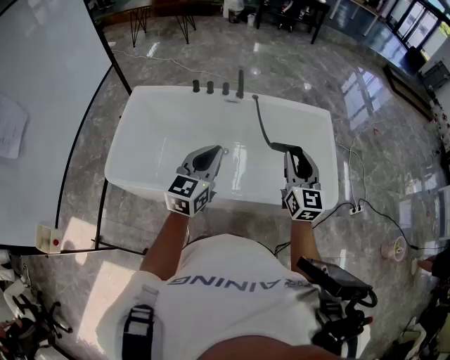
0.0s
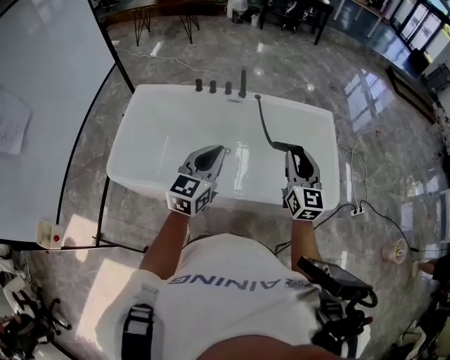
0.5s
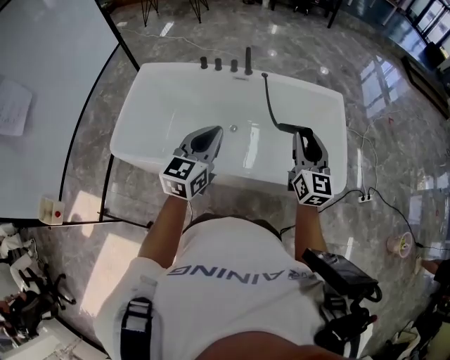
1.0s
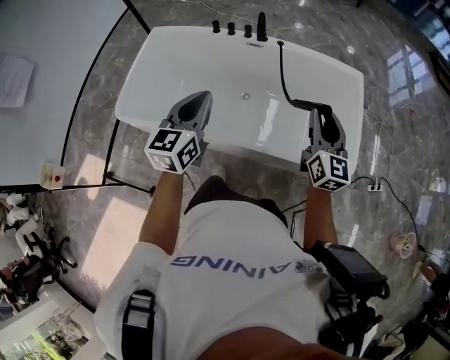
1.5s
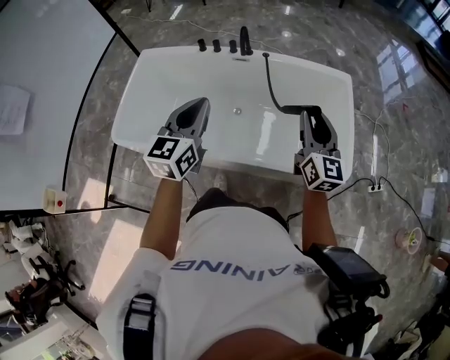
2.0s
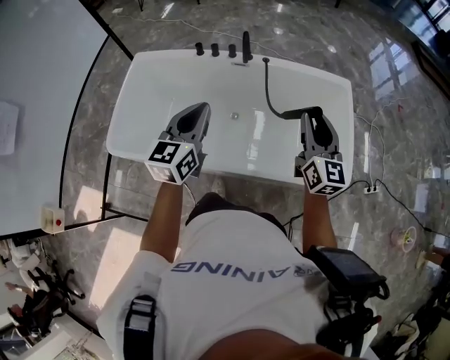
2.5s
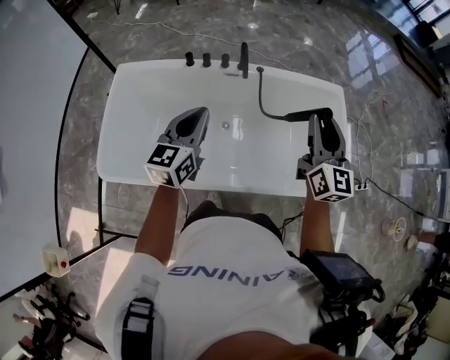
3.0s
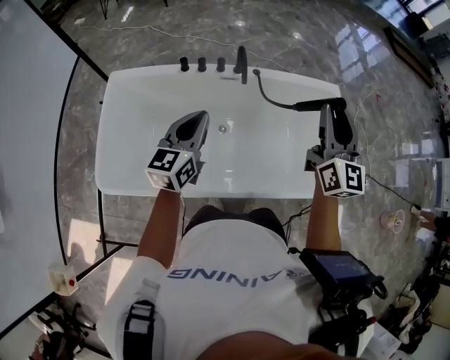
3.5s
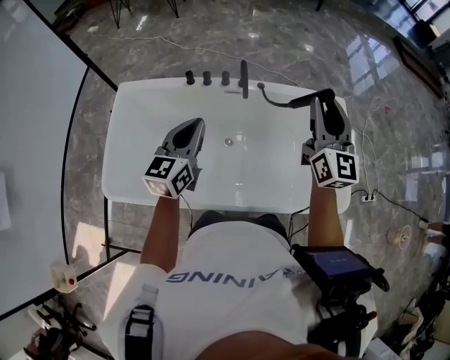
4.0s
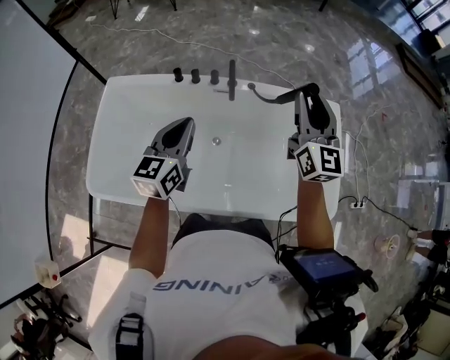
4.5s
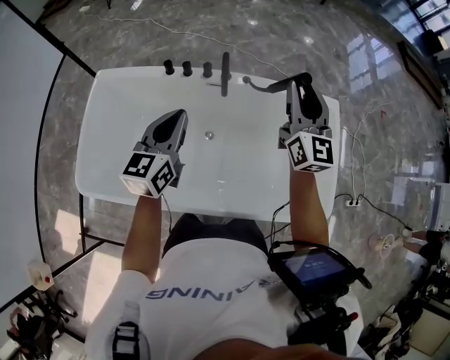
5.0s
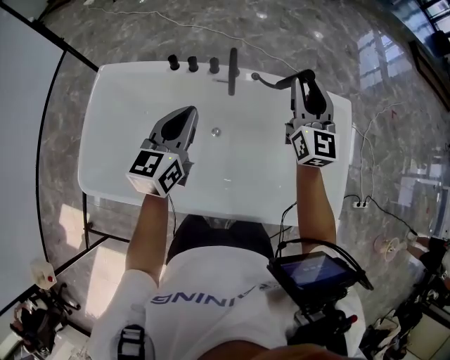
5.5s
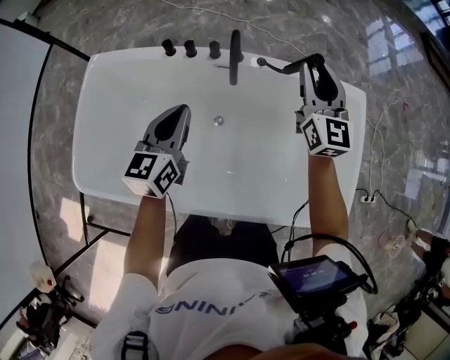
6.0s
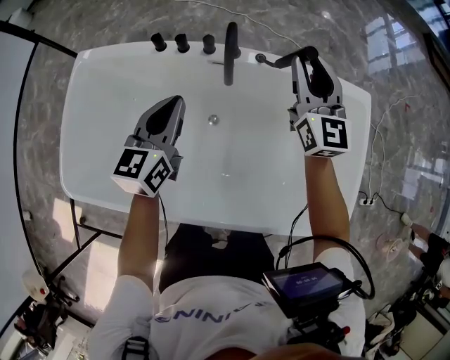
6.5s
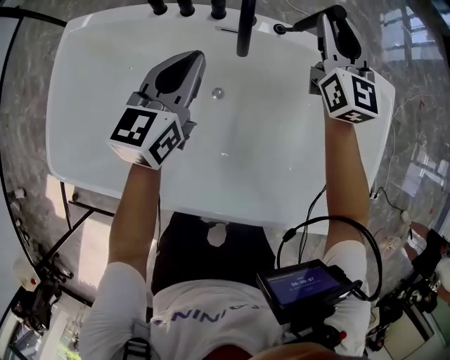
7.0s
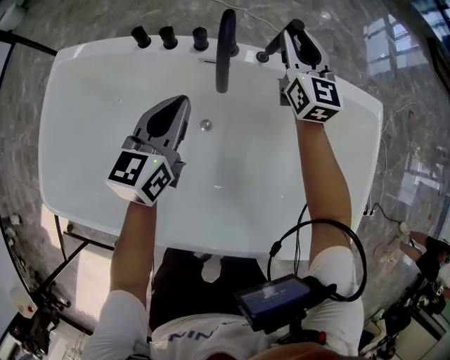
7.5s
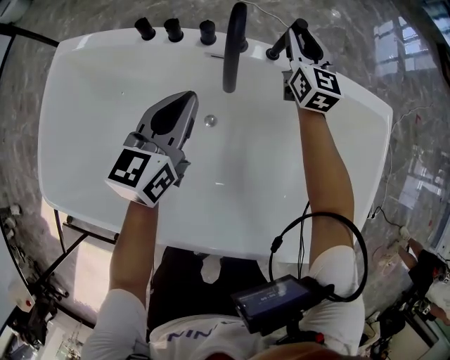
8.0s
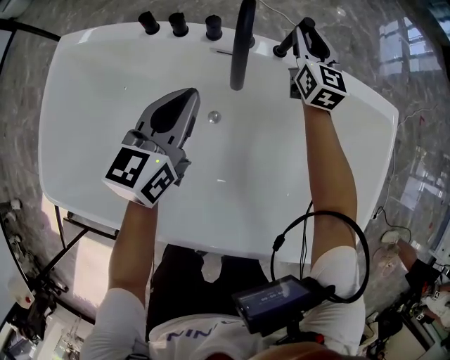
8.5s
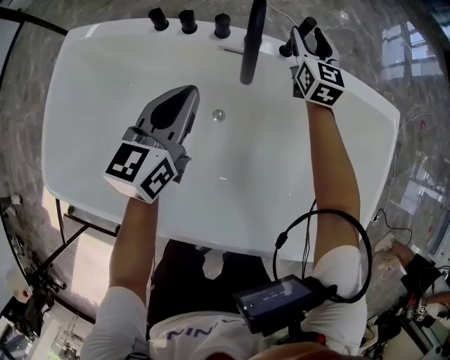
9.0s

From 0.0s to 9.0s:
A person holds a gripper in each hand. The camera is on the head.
From 0.0s to 2.0s: The right gripper goes approximately 10 cm to the right. Meanwhile the left gripper goes roughly 5 cm to the right.
From 2.0s to 4.5s: The grippers both shift forward and to the left by approximately 30 cm.
From 4.5s to 7.0s: The two grippers go roughly 35 cm downward and forward.
From 7.0s to 9.0s: The right gripper heads downward and forward, covering about 20 cm, and opens up.

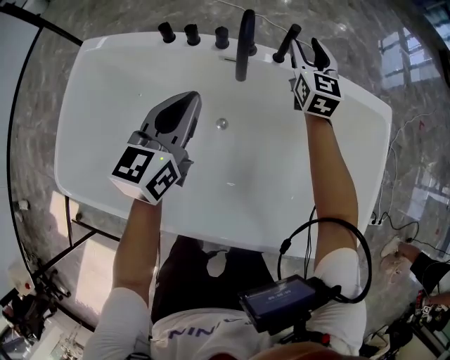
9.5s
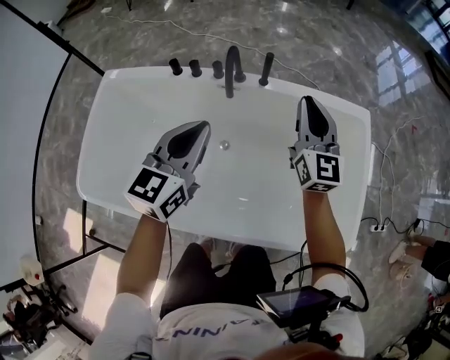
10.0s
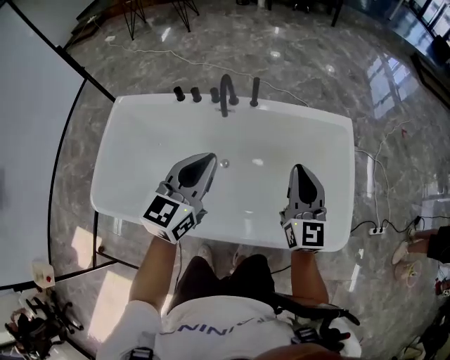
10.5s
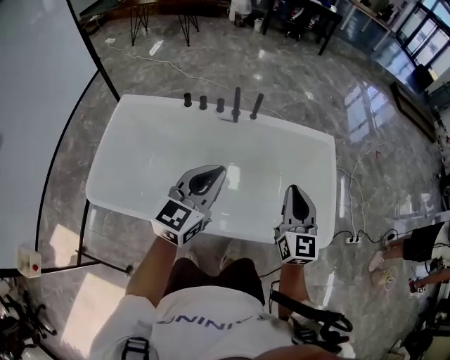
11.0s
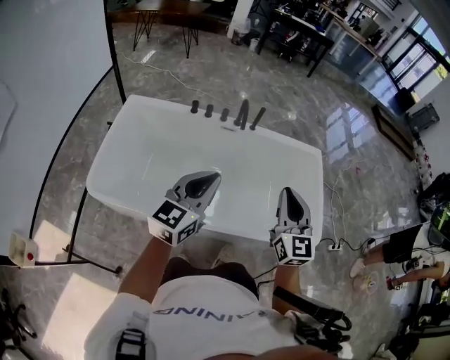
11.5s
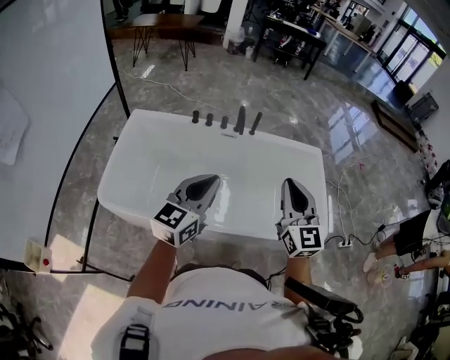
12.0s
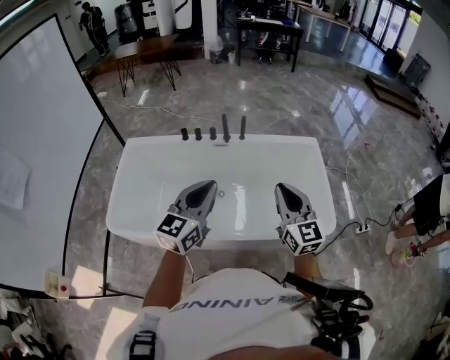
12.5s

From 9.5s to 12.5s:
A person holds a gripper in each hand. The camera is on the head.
From 9.5s to 11.0s: The grippers both shift backward and upward by some 50 cm. The right gripper closes.
From 11.0s to 12.5s: The two grippers go about 15 cm backward and upward.

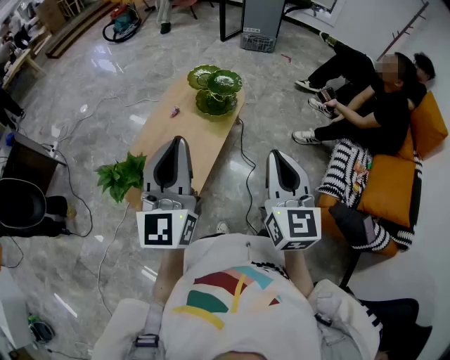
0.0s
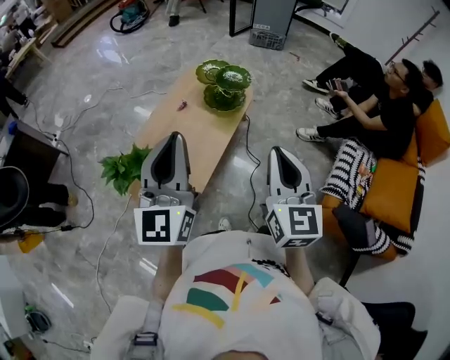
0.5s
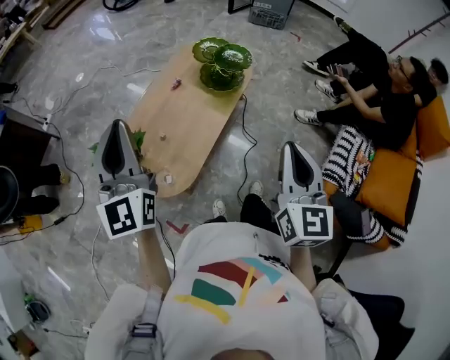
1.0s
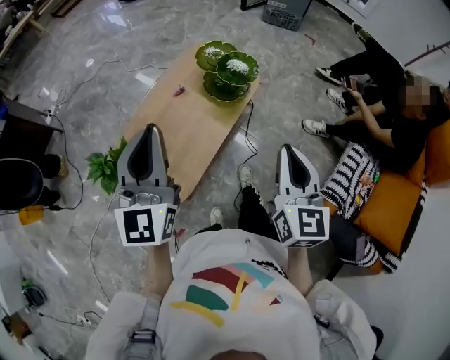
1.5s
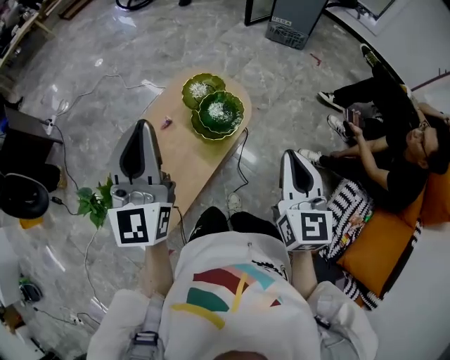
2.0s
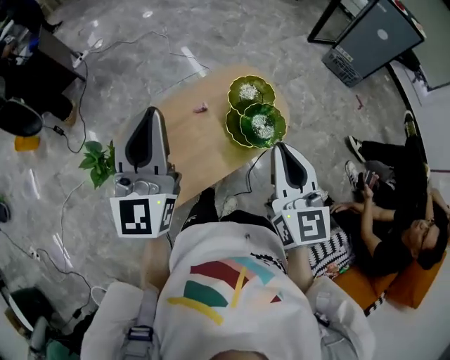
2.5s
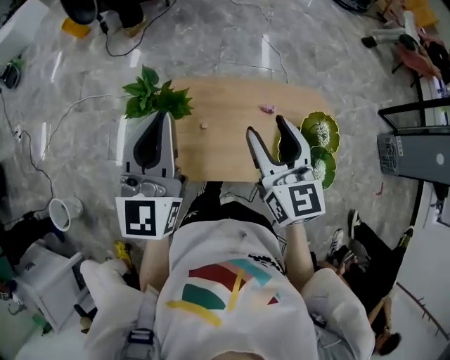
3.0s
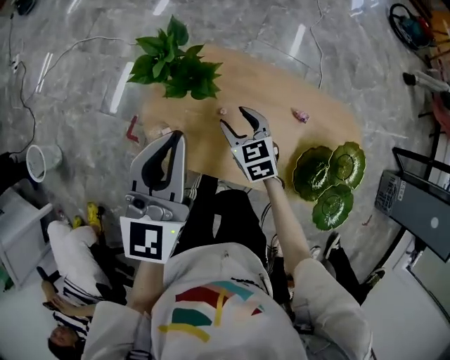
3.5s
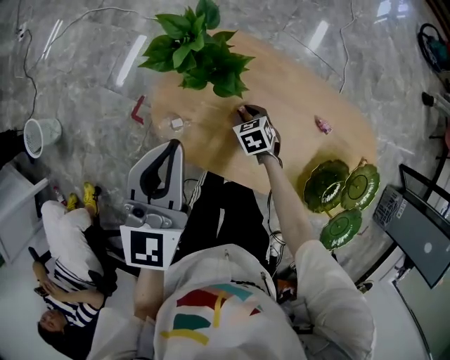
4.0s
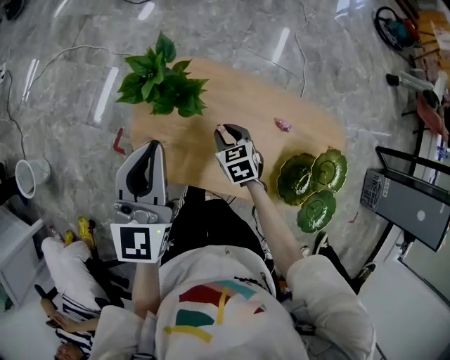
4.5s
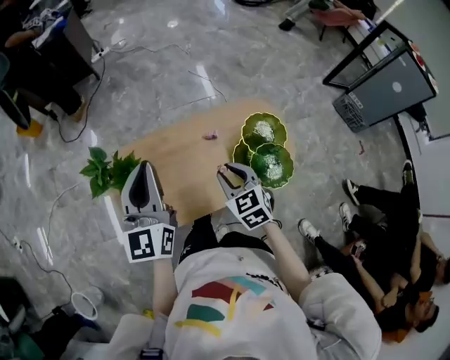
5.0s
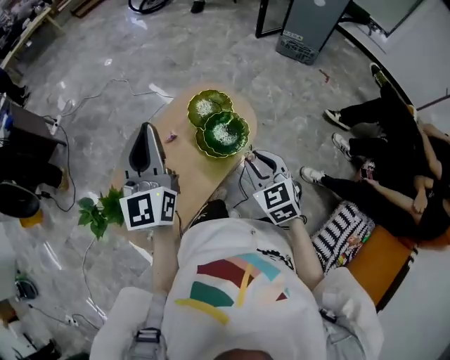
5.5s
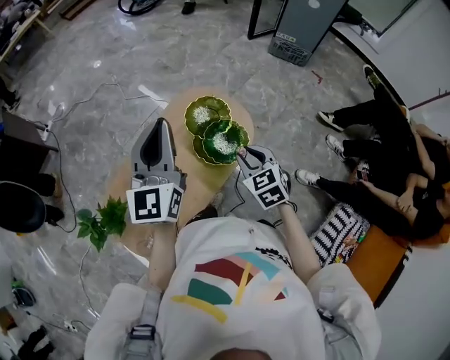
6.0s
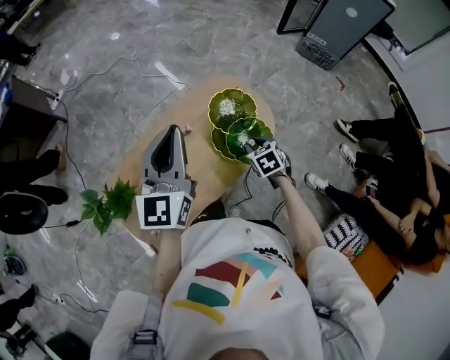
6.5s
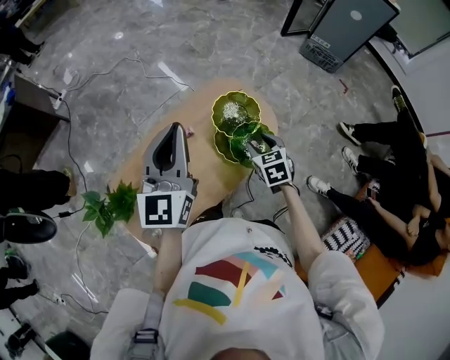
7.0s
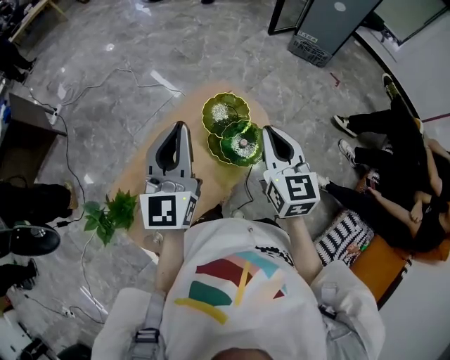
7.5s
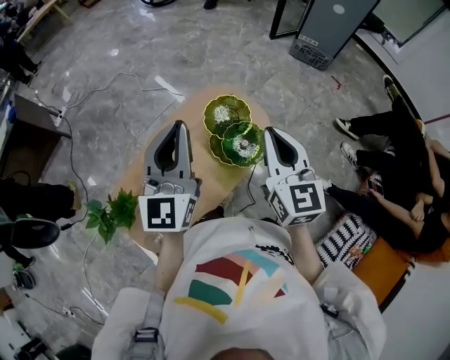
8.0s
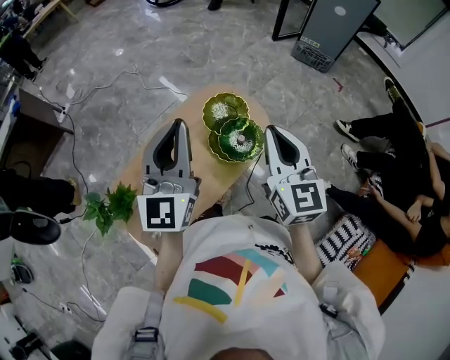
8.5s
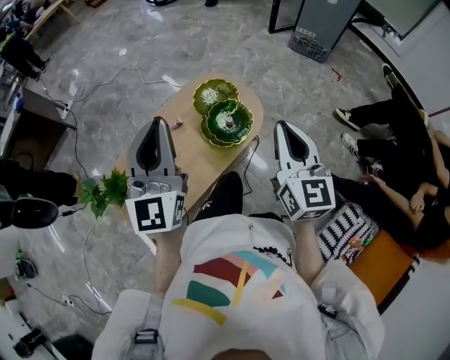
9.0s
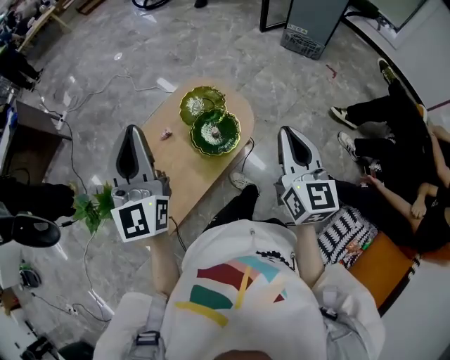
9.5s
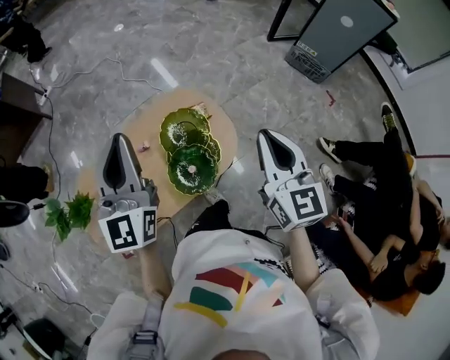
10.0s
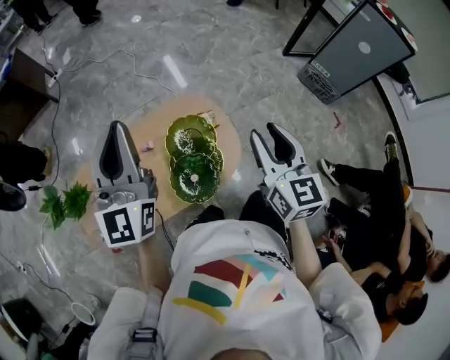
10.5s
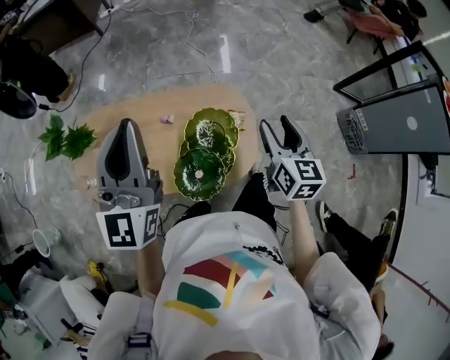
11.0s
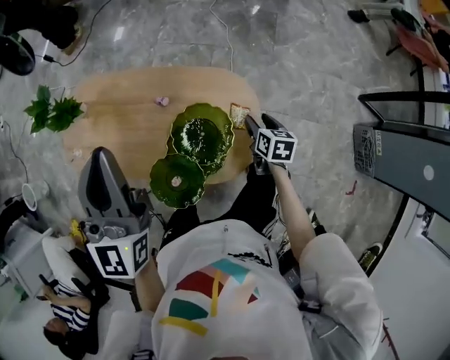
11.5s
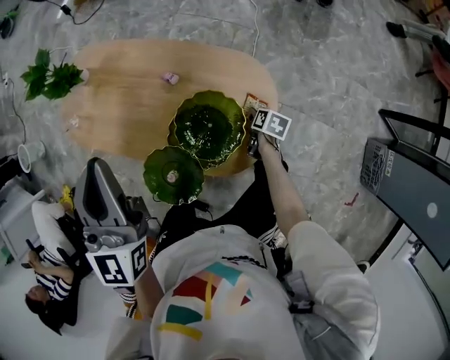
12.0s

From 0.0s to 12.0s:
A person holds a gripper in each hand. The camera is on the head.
From 0.0s to 2.0s: The left gripper shifts about 30 cm forward. The right gripper is displaced forward and to the right by approximately 30 cm.
From 2.0s to 4.0s: The left gripper changes place by some 50 cm, and rotates about 70 degrees; the right gripper shifts about 60 cm downward, tilts its fingers some 50 degrees downward, and opens its fingers.
From 4.0s to 6.0s: Both grippers are carried some 40 cm. The right gripper turns by some 70 degrees; the left gripper swivels approximately 70 degrees.
From 6.0s to 8.0s: The right gripper heads upward, covering some 15 cm, points its fingers about 30 degrees further upward, and closes its fingers.
From 8.0s to 10.0s: The left gripper heads forward and to the right, covering approximately 10 cm, and changes its angle by about 20 degrees, while the right gripper travels to the right and forward by roughly 20 cm.
From 10.0s to 12.0s: The left gripper heads downward, covering about 10 cm, and swivels roughly 50 degrees. The right gripper moves downward, roughly 50 cm, tips its fingers downward by roughly 50 degrees, and opens up.

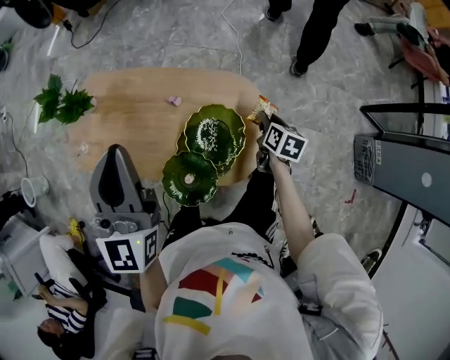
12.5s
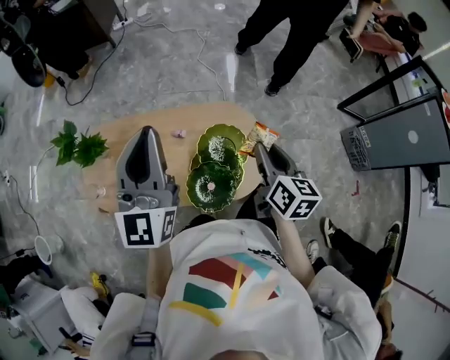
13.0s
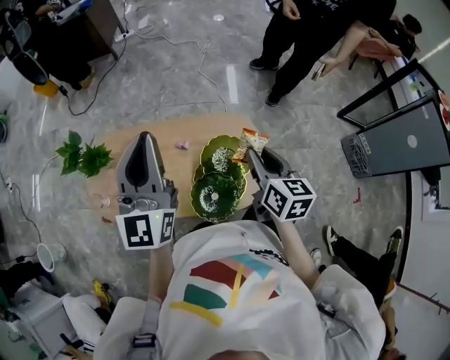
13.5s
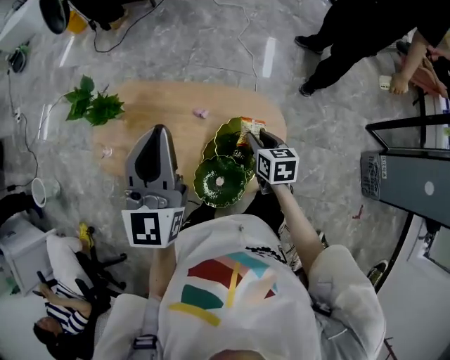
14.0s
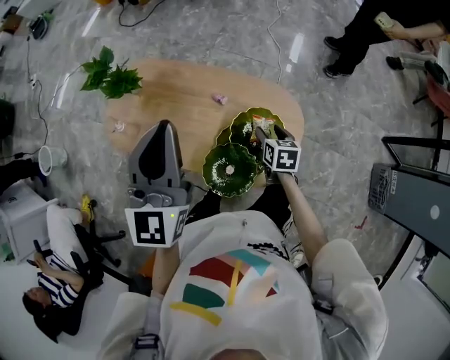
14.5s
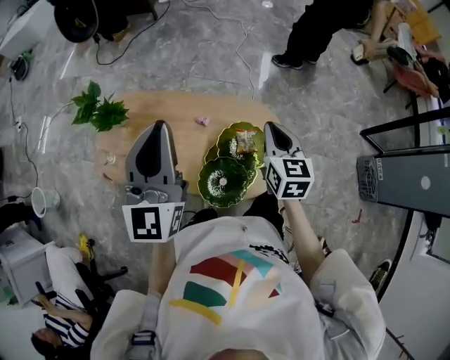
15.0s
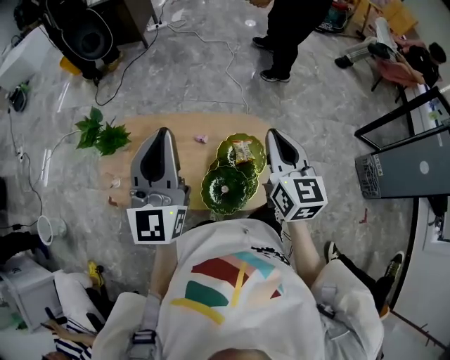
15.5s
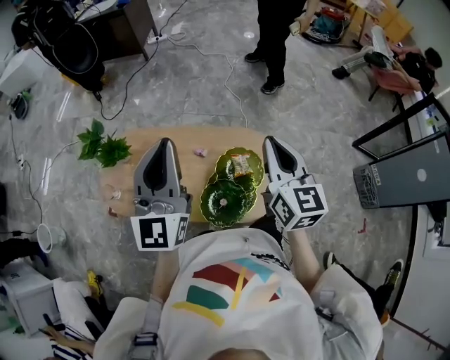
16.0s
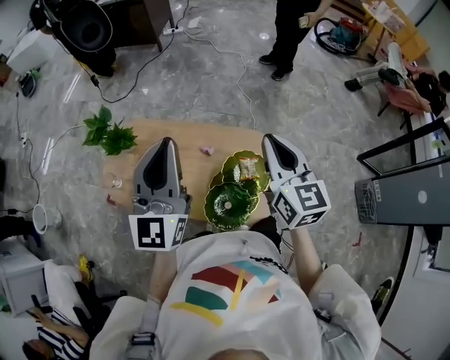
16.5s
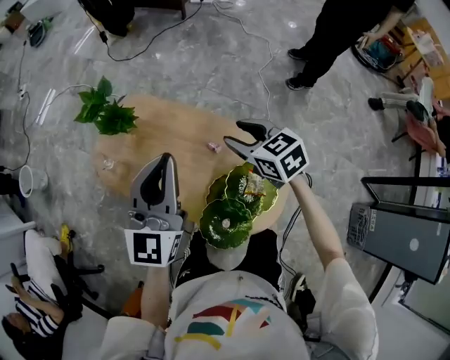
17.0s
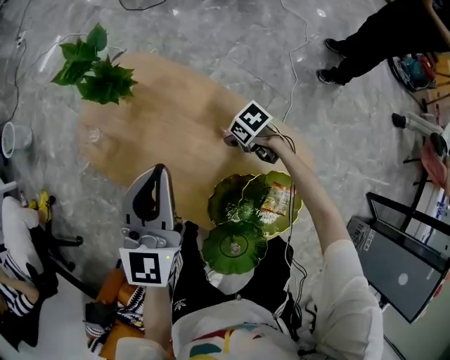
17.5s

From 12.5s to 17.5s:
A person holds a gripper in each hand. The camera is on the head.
From 12.5s to 15.0s: The left gripper is displaced upward by roughly 5 cm. The right gripper swings up and down, approximately 25 cm each way, with 2 reversals, rotates roughly 40 degrees, and closes up.
From 15.0s to 17.5s: The right gripper goes approximately 40 cm downward, tilts its fingers some 40 degrees downward, and opens, while the left gripper is displaced downward by about 20 cm, and swivels about 20 degrees.
